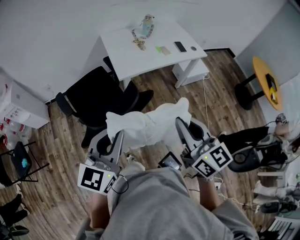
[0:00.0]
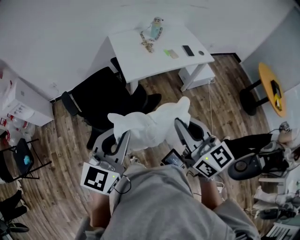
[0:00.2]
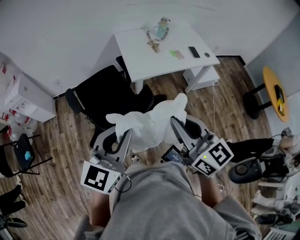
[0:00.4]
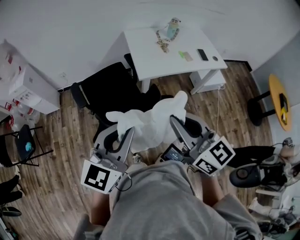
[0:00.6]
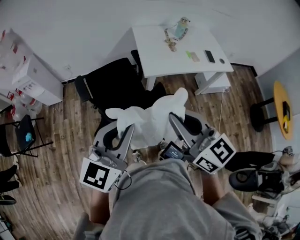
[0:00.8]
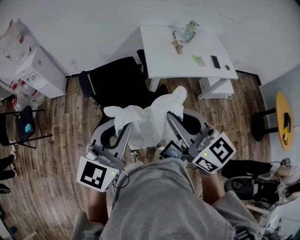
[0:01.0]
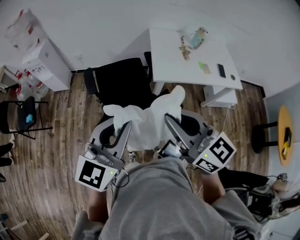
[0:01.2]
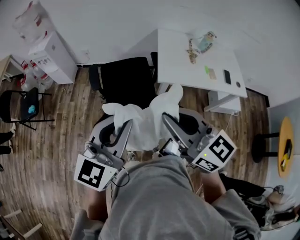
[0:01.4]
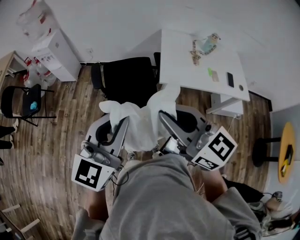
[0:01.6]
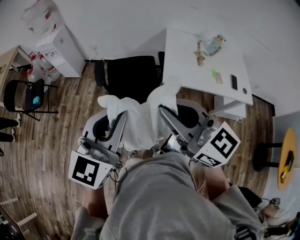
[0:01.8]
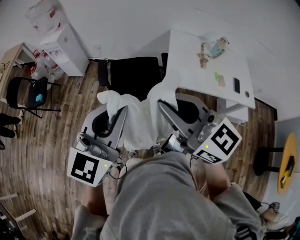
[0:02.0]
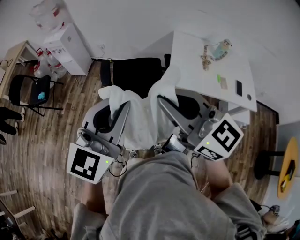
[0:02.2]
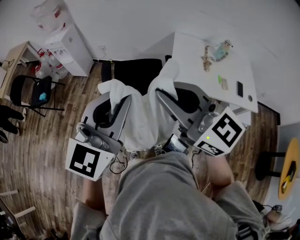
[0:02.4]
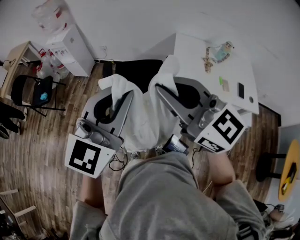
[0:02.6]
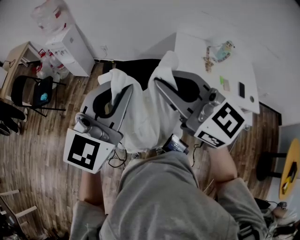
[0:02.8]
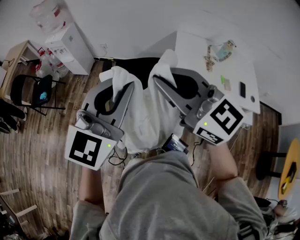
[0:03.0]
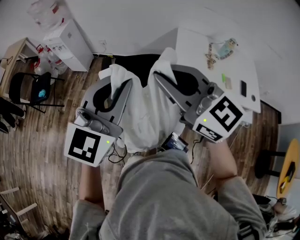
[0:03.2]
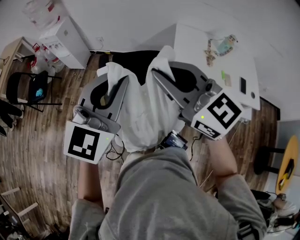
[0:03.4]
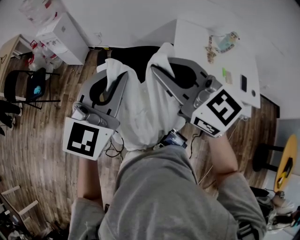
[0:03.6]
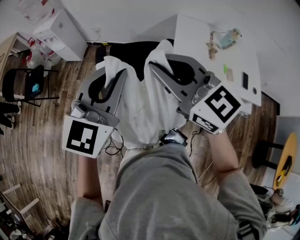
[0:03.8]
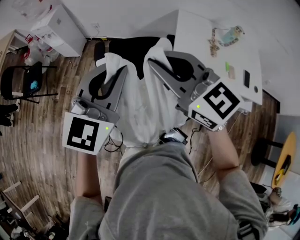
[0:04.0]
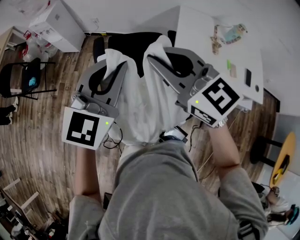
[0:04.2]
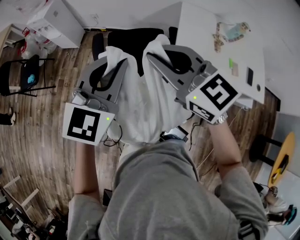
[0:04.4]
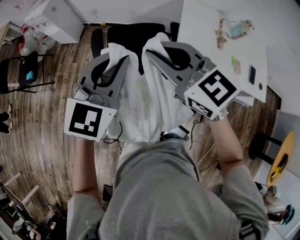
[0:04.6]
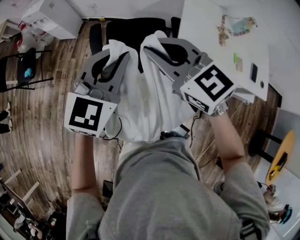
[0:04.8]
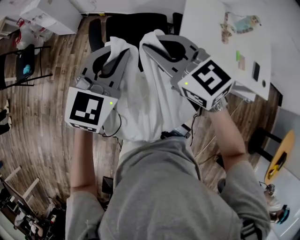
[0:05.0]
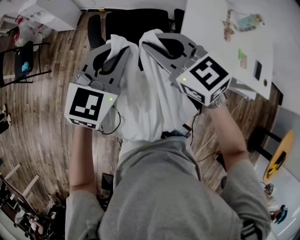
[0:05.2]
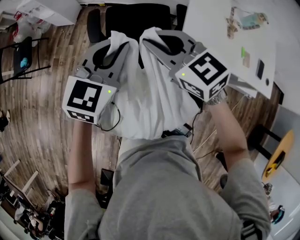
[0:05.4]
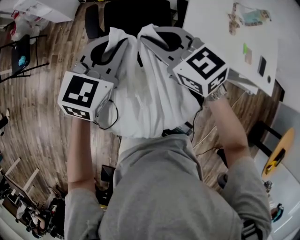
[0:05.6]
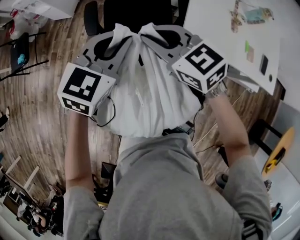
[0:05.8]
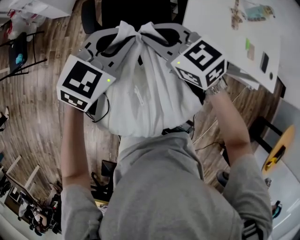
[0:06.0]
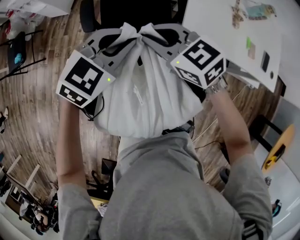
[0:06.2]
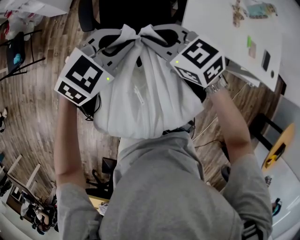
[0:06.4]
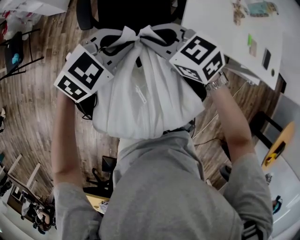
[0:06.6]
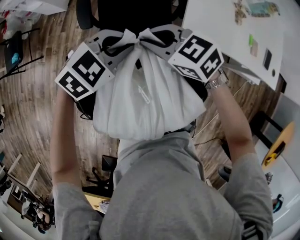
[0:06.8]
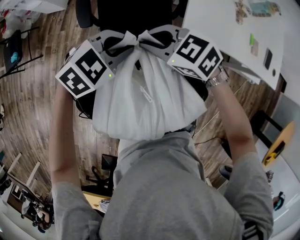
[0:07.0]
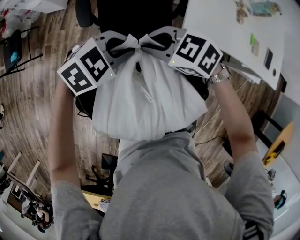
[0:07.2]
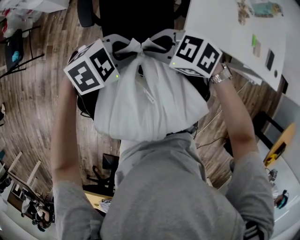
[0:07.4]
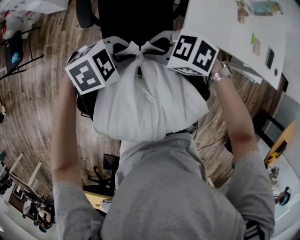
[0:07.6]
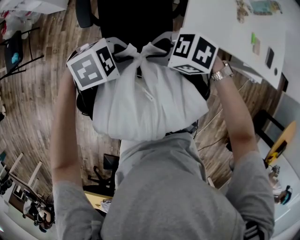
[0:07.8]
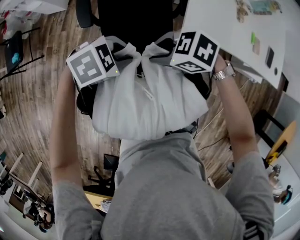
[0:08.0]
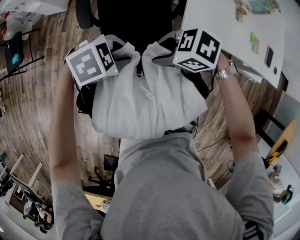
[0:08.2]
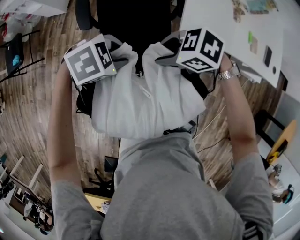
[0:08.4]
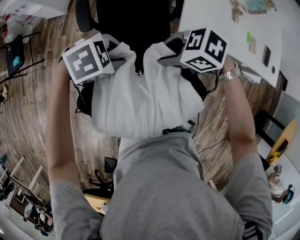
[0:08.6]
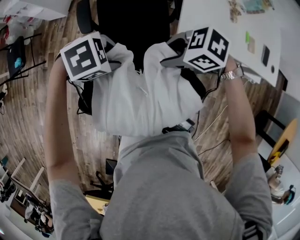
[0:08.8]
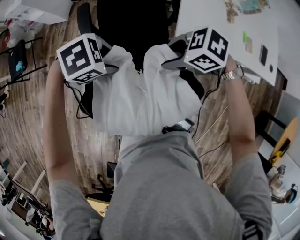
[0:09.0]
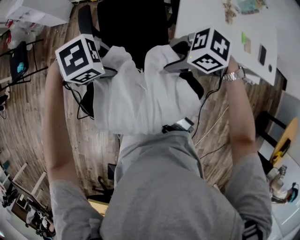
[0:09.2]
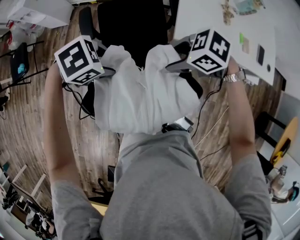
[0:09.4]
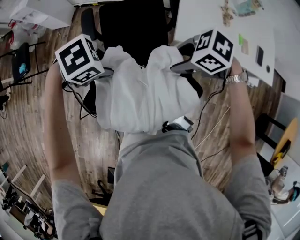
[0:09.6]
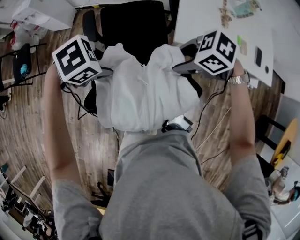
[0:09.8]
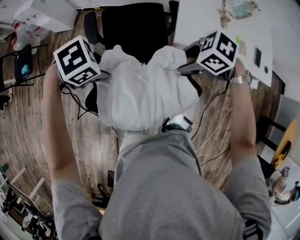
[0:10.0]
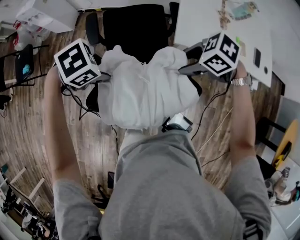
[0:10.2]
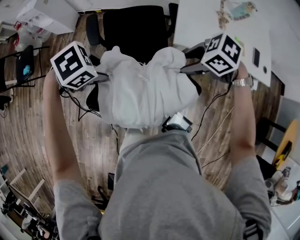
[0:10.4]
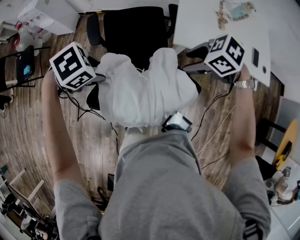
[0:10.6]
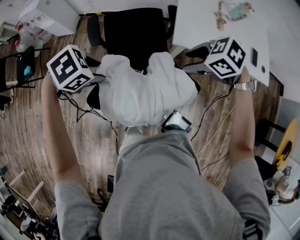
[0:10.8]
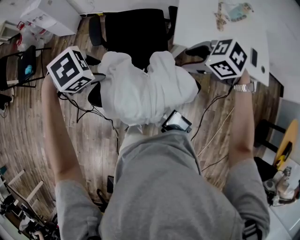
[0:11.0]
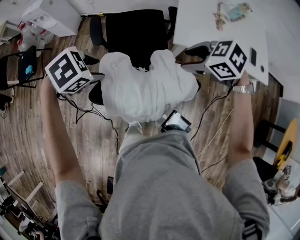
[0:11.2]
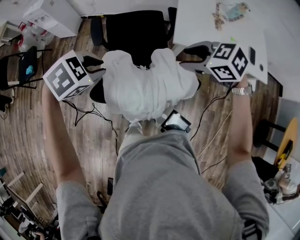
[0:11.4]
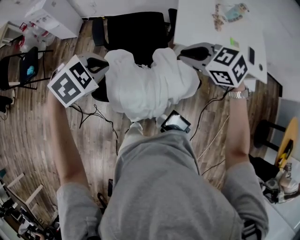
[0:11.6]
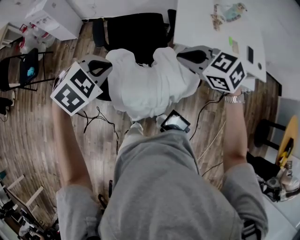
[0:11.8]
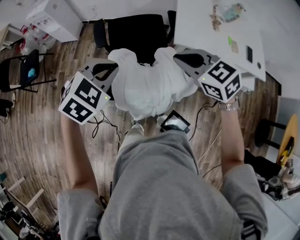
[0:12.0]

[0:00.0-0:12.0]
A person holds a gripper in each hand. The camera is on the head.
0.0 to 1.6 s: The right gripper changes place by about 20 cm, and turns by some 50 degrees; the left gripper ends up roughly 10 cm from where it was, and rotates about 20 degrees.
1.6 to 3.0 s: The left gripper goes some 5 cm upward, while the right gripper goes approximately 10 cm forward and upward.
3.0 to 4.4 s: The two grippers go roughly 20 cm forward and downward.
4.4 to 6.0 s: The grippers both shift downward by approximately 15 cm. The left gripper swivels about 20 degrees.
6.0 to 7.6 s: Both grippers travel together downward, some 10 cm. The right gripper rotates roughly 30 degrees; the left gripper changes its angle by approximately 40 degrees.
7.6 to 9.0 s: The left gripper opens. The right gripper changes place by about 10 cm, and opens up.
9.0 to 10.4 s: The left gripper moves to the right, approximately 5 cm; the right gripper shifts approximately 5 cm to the left.
10.4 to 12.0 s: The grippers both shift upward by approximately 10 cm. The left gripper changes its angle by some 40 degrees, and closes up. Meanwhile the right gripper swivels some 40 degrees, and closes up.

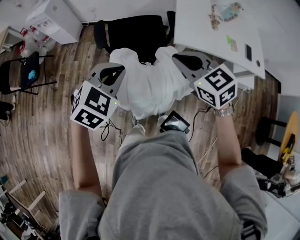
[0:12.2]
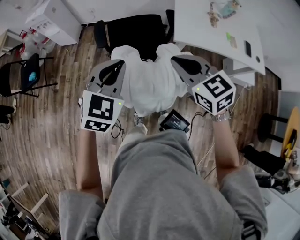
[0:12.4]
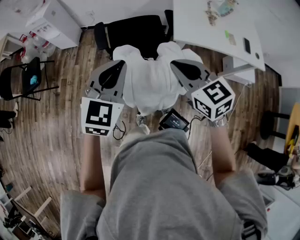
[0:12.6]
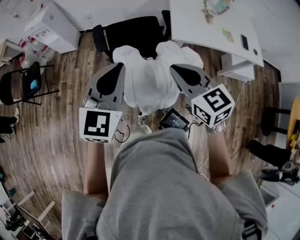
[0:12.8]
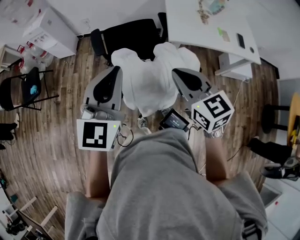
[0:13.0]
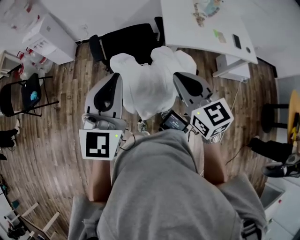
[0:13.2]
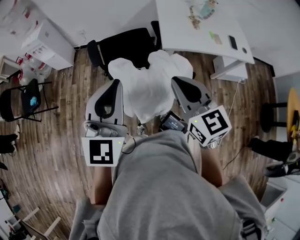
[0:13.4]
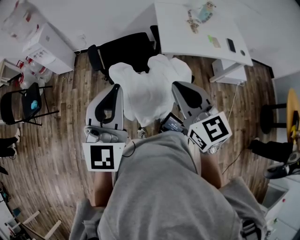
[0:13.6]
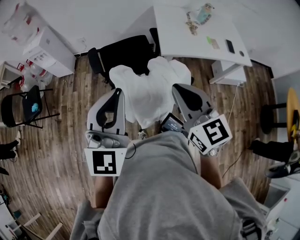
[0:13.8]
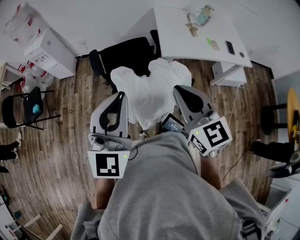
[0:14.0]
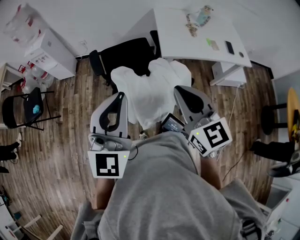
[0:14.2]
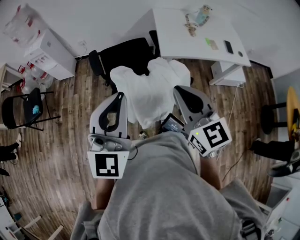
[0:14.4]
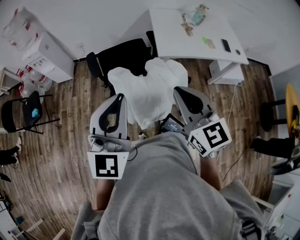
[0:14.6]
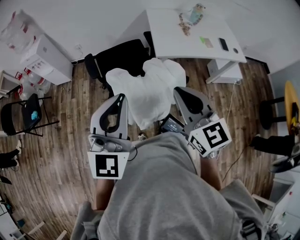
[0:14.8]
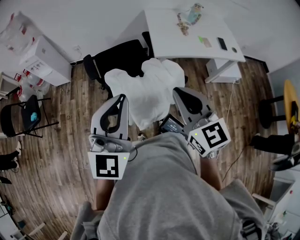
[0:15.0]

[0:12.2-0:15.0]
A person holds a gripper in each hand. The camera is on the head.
12.2 to 13.6 s: The left gripper heads upward and backward, covering about 15 cm, and points its fingers about 40 degrees further upward. The right gripper goes approximately 15 cm backward and upward, and rotates about 30 degrees.
13.6 to 15.0 s: The grippers make only small movements.

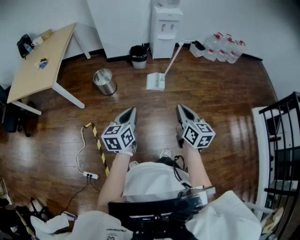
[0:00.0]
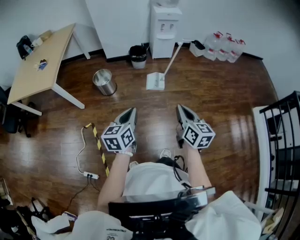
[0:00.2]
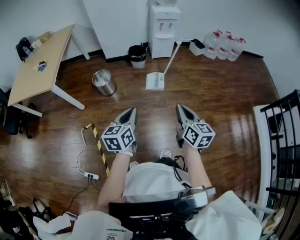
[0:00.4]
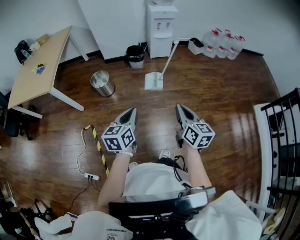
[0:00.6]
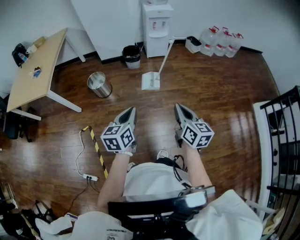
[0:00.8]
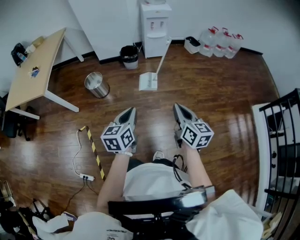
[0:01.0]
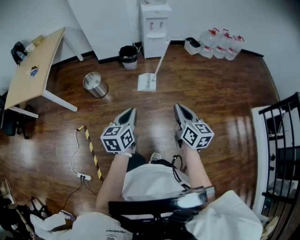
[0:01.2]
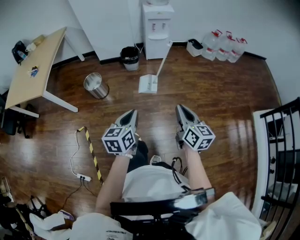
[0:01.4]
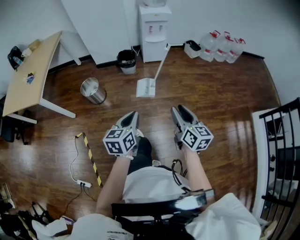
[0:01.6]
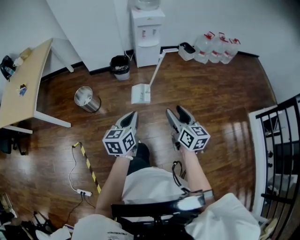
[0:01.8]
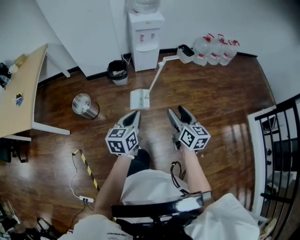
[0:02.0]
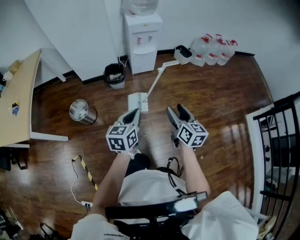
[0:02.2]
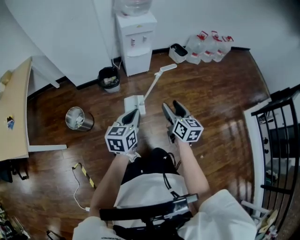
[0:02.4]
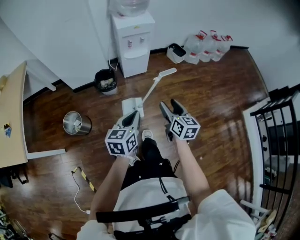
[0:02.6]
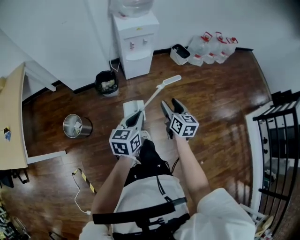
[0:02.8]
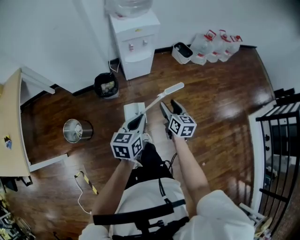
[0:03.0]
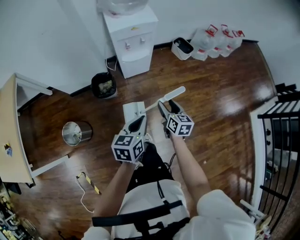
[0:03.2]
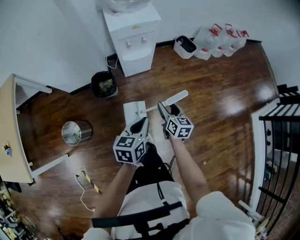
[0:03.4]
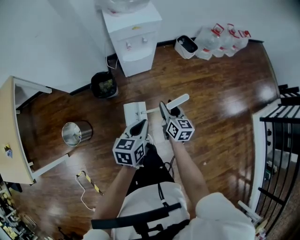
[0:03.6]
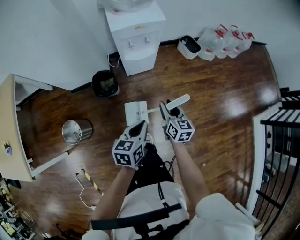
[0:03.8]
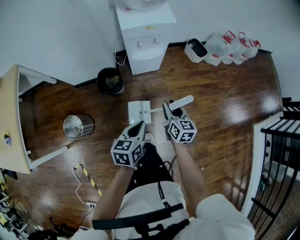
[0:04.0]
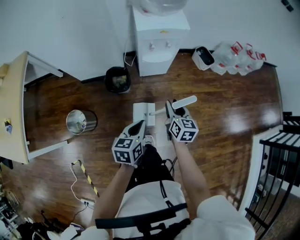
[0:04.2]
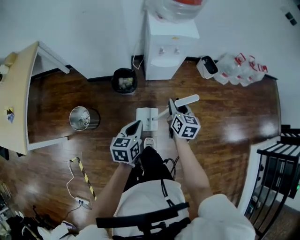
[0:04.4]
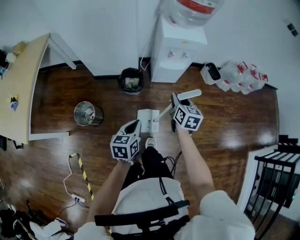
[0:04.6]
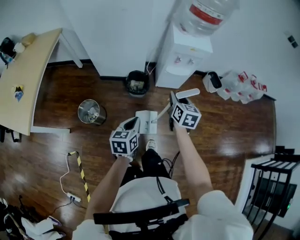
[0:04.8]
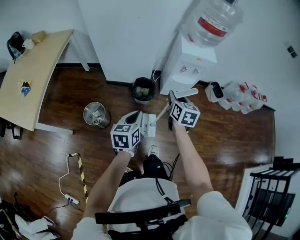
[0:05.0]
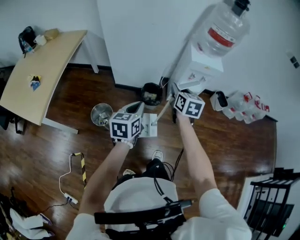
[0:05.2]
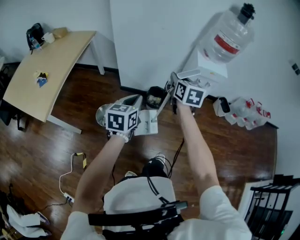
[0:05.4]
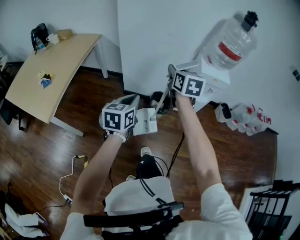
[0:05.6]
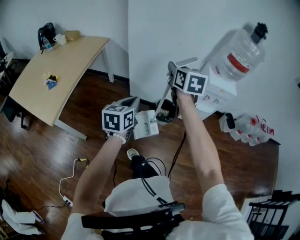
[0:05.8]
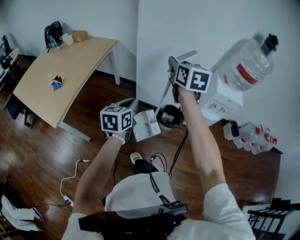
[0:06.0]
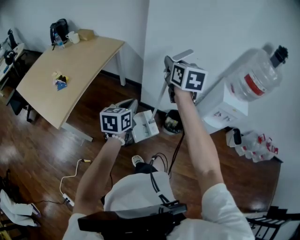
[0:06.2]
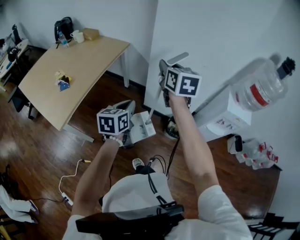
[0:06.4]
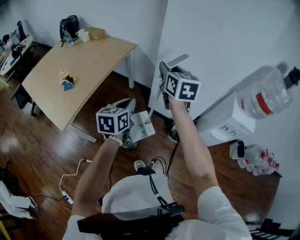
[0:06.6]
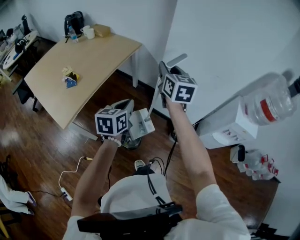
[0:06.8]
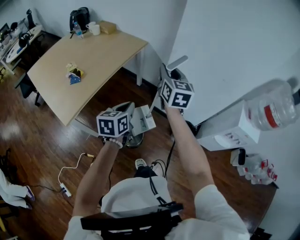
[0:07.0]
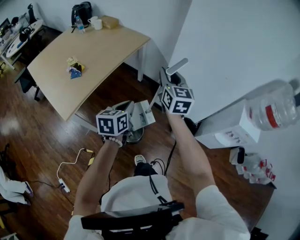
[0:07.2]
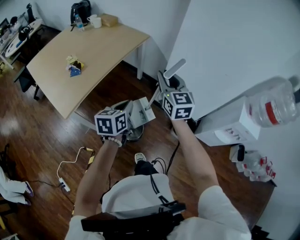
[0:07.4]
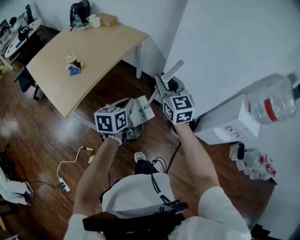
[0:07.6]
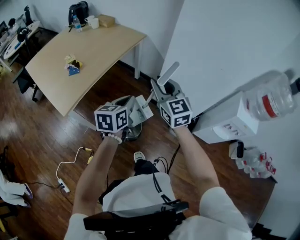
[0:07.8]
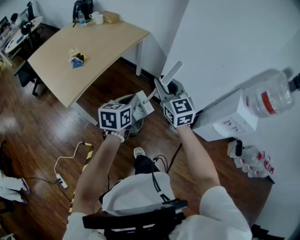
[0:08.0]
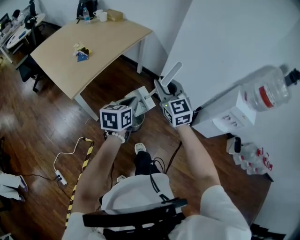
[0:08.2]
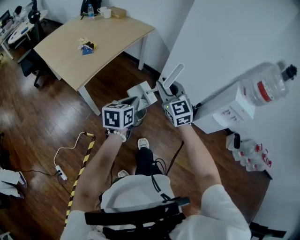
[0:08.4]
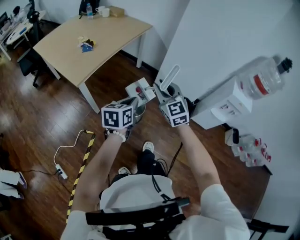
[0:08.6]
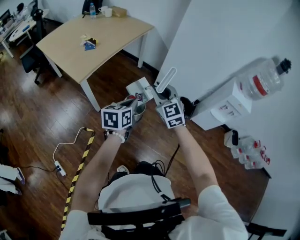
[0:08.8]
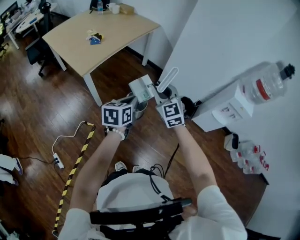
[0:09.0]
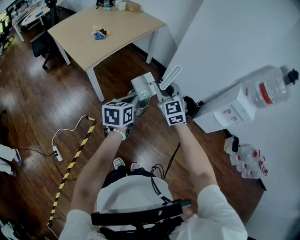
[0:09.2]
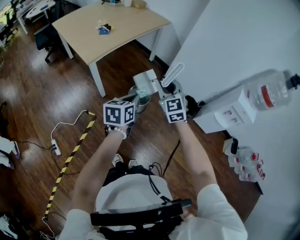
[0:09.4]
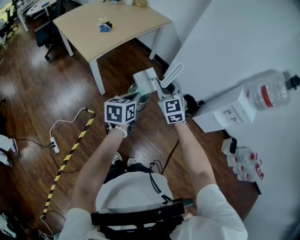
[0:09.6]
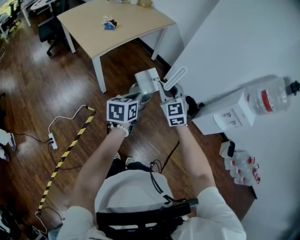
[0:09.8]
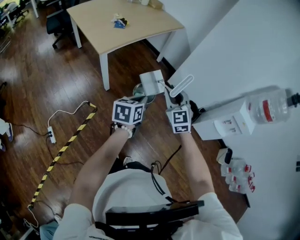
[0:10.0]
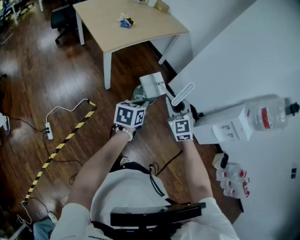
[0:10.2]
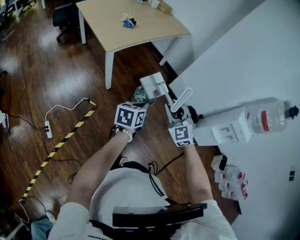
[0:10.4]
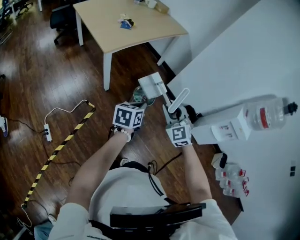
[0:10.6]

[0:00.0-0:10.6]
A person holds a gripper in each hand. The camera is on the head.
0.0 to 1.6 s: The left gripper heads to the right and forward, covering about 20 cm; the right gripper moves forward and to the right, about 20 cm, and opens its fingers.
1.6 to 3.0 s: The pair of grippers is taken forward, some 50 cm.
3.0 to 4.6 s: The left gripper travels to the left by some 15 cm, while the right gripper moves to the left and forward, roughly 15 cm, and closes.
4.6 to 6.0 s: Both grippers move to the left and upward, approximately 50 cm. The left gripper changes its angle by roughly 20 degrees, while the right gripper turns by approximately 30 degrees.
6.0 to 7.6 s: The right gripper moves to the left and downward, approximately 20 cm, and swivels about 30 degrees, while the left gripper shifts approximately 15 cm to the left and forward.
7.6 to 9.0 s: Both grippers move backward, about 25 cm.
9.0 to 10.6 s: The grippers both shift backward and downward by some 10 cm.
